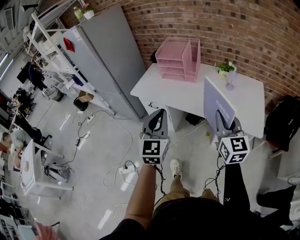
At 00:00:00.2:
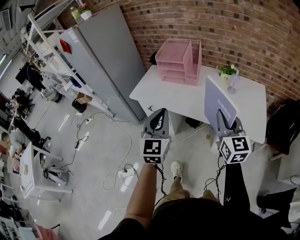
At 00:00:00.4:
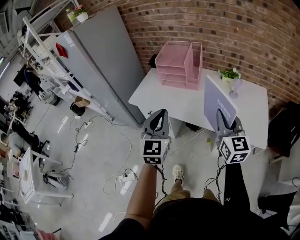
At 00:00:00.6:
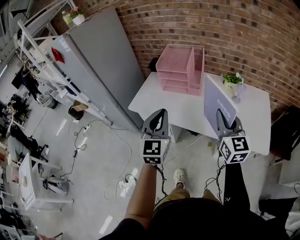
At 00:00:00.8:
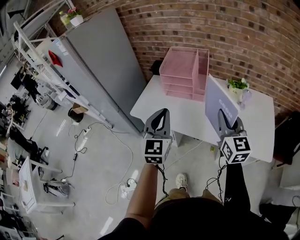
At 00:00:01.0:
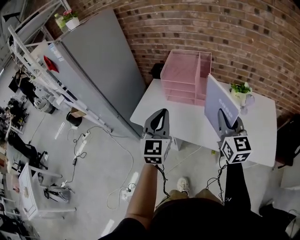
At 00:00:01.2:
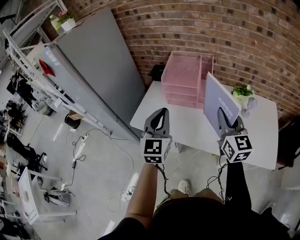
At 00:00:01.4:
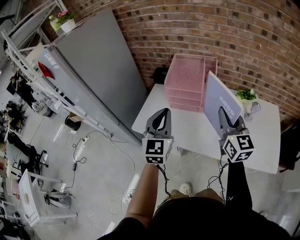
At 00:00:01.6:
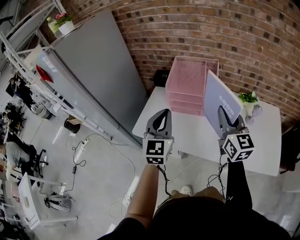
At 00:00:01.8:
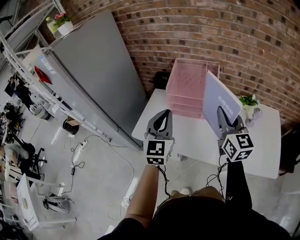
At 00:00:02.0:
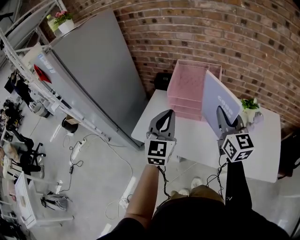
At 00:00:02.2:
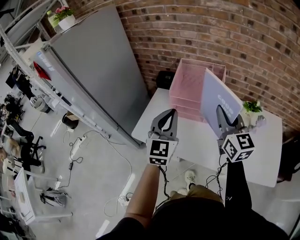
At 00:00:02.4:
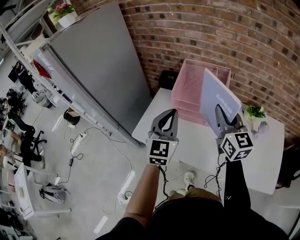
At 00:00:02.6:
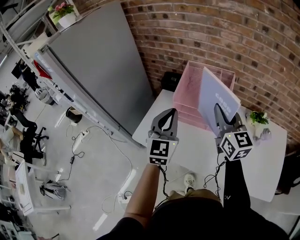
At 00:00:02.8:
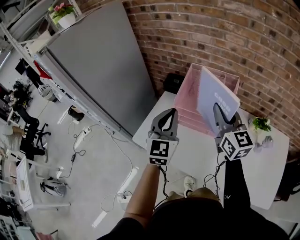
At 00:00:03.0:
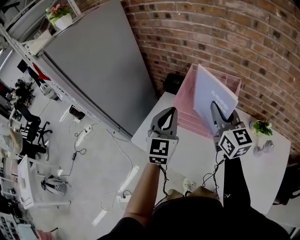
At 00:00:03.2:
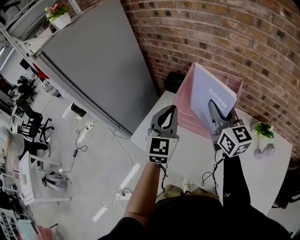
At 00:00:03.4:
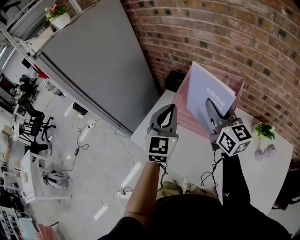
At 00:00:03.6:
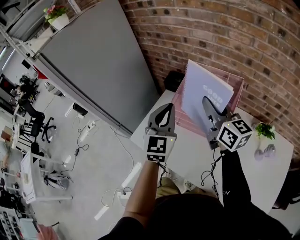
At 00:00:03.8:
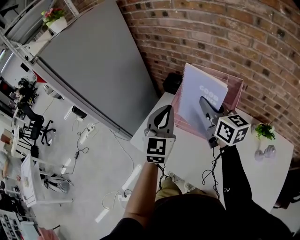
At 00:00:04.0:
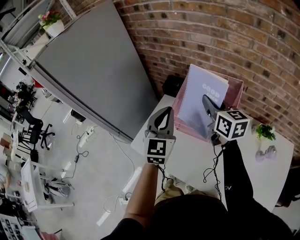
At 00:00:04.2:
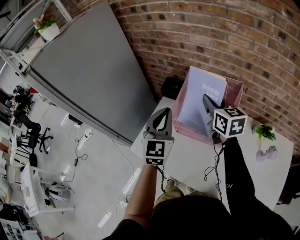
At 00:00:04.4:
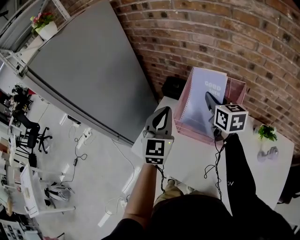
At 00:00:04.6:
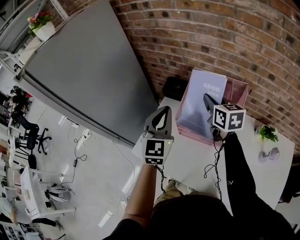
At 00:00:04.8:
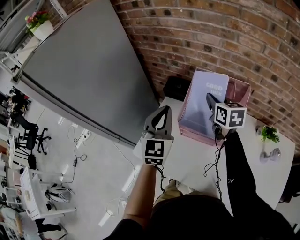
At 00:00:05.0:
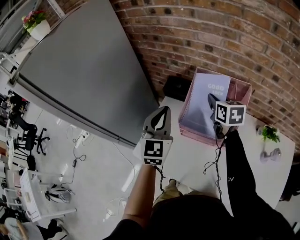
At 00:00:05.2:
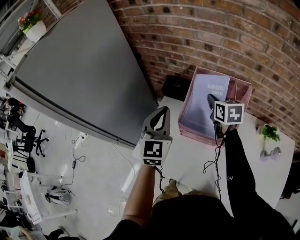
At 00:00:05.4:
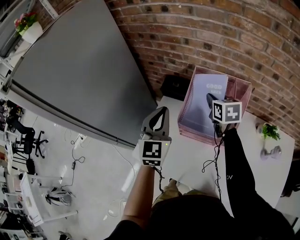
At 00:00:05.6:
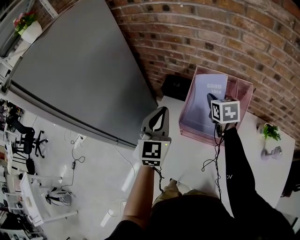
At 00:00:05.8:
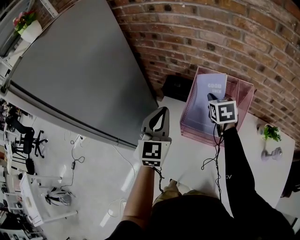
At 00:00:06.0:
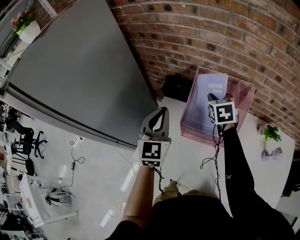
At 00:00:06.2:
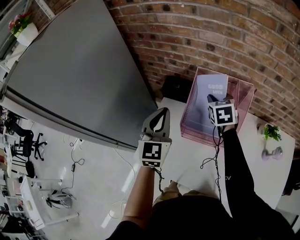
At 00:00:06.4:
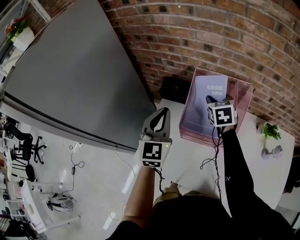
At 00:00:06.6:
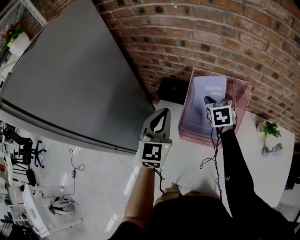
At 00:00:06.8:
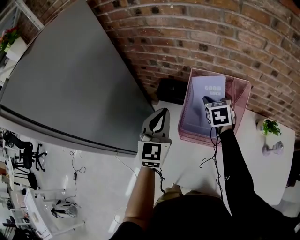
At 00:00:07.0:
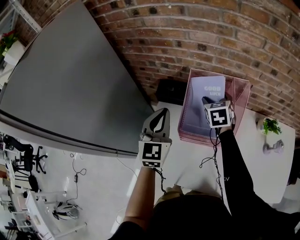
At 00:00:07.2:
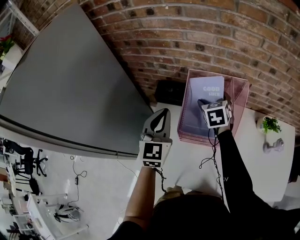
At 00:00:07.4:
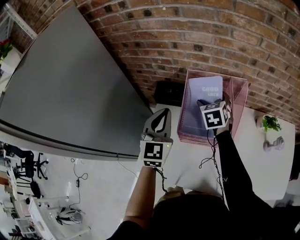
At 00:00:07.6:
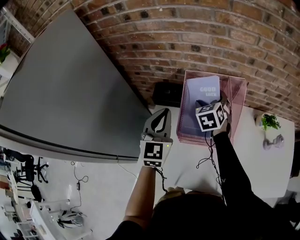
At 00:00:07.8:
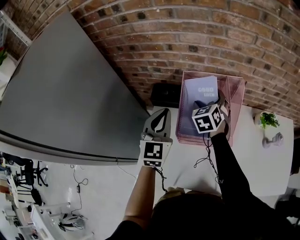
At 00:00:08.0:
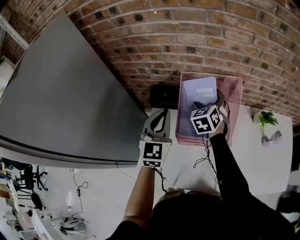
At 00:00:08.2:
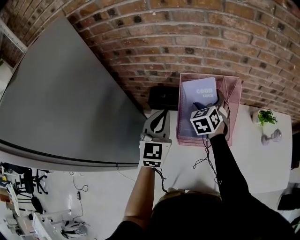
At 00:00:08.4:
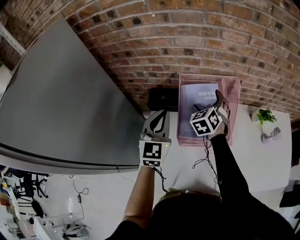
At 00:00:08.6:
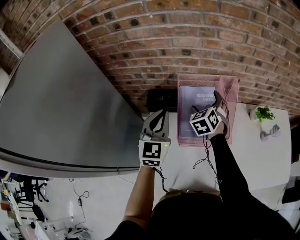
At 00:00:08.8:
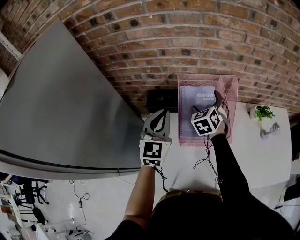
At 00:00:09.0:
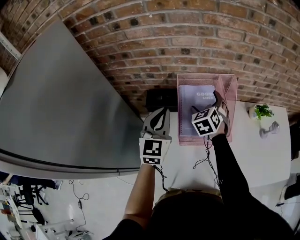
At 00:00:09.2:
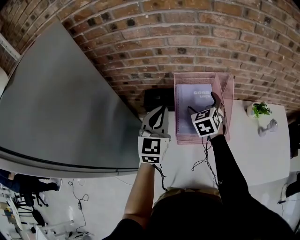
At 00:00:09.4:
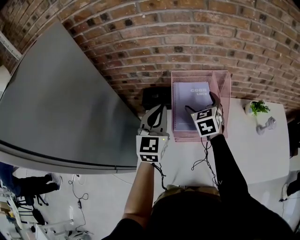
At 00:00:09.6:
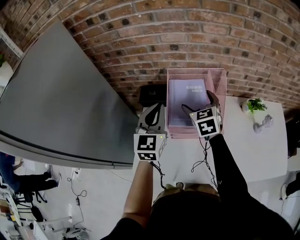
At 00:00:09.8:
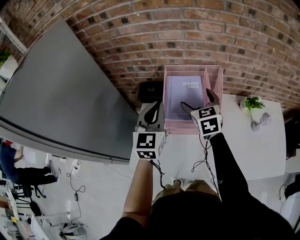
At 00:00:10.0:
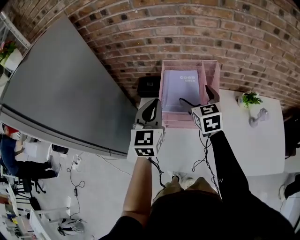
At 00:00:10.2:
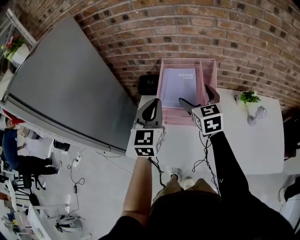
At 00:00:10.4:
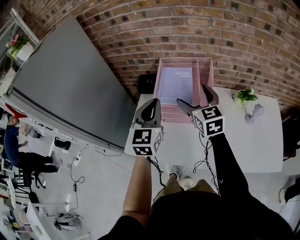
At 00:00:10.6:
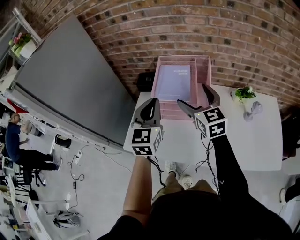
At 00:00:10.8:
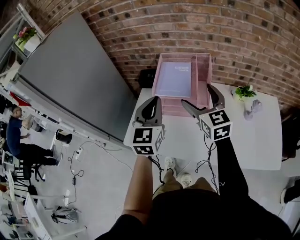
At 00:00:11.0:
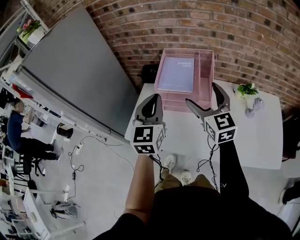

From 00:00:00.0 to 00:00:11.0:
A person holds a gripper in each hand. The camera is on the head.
From 00:00:00.0 to 00:00:01.6: The two grippers go roughly 35 cm forward.
From 00:00:01.6 to 00:00:03.2: Both grippers move forward, approximately 20 cm. The right gripper rotates roughly 20 degrees.
From 00:00:03.2 to 00:00:04.8: The left gripper shifts approximately 10 cm forward; the right gripper goes roughly 15 cm forward and downward, and changes its angle by approximately 30 degrees.
From 00:00:04.8 to 00:00:06.2: The right gripper changes place by about 5 cm, and changes its angle by approximately 30 degrees.
From 00:00:06.2 to 00:00:07.8: The right gripper opens its fingers. The left gripper ends up about 5 cm from where it was.
From 00:00:07.8 to 00:00:09.4: The grippers move only a little.
From 00:00:09.4 to 00:00:11.0: The right gripper moves backward and upward, roughly 25 cm, and turns by approximately 30 degrees. The left gripper shifts about 20 cm backward.

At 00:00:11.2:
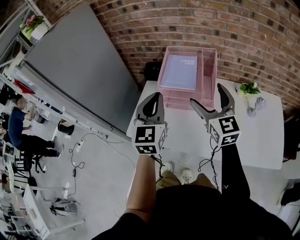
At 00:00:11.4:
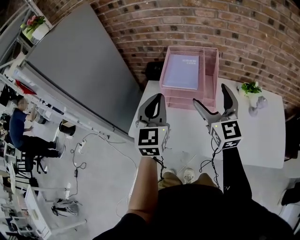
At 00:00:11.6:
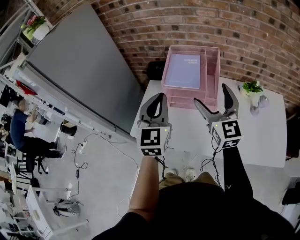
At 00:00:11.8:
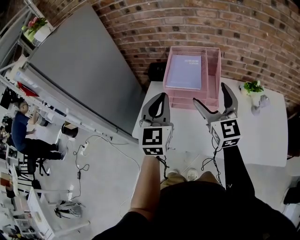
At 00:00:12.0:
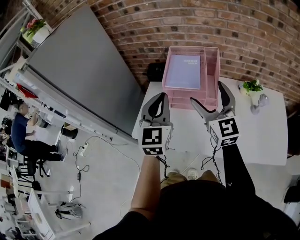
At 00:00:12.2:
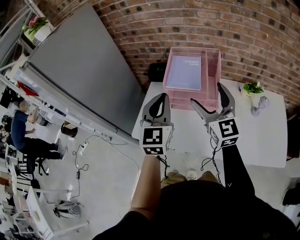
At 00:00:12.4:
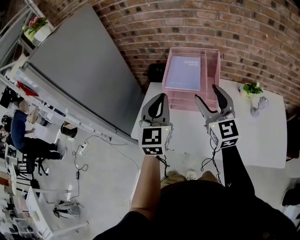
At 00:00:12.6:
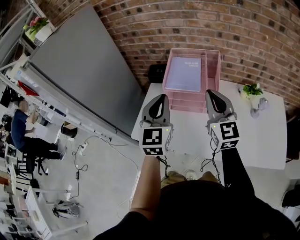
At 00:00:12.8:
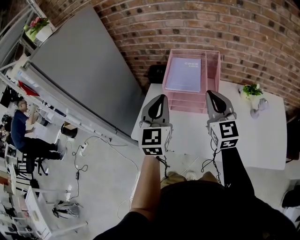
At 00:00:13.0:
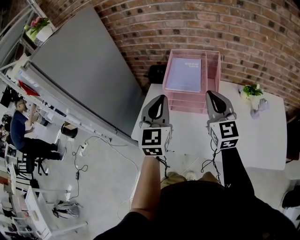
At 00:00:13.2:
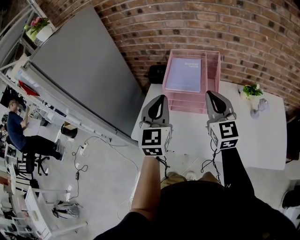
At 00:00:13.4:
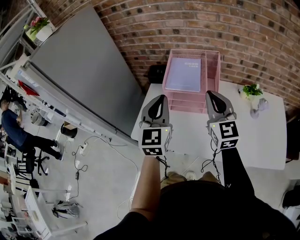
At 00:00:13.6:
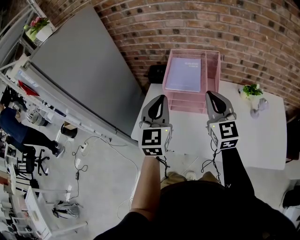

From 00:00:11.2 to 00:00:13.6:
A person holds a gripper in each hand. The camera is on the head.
From 00:00:11.2 to 00:00:12.4: The right gripper closes its fingers.
From 00:00:12.4 to 00:00:13.6: The right gripper closes.

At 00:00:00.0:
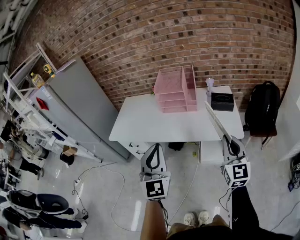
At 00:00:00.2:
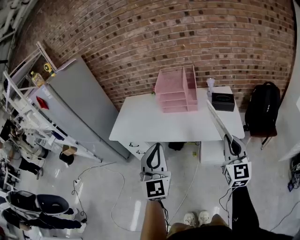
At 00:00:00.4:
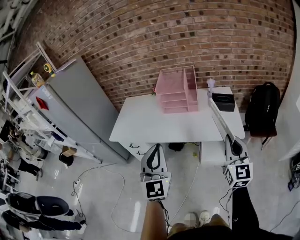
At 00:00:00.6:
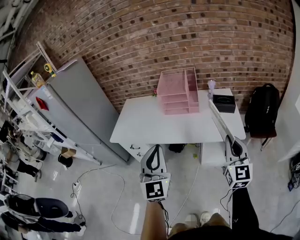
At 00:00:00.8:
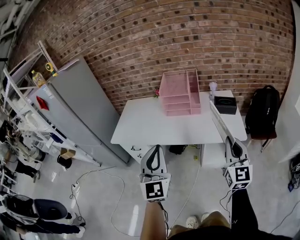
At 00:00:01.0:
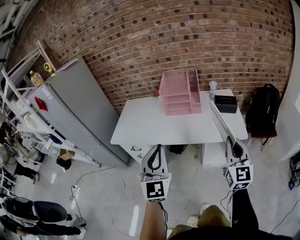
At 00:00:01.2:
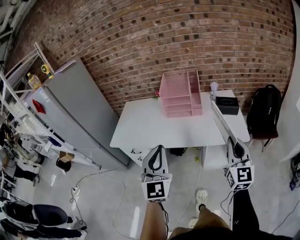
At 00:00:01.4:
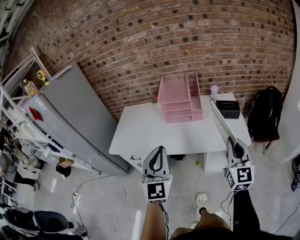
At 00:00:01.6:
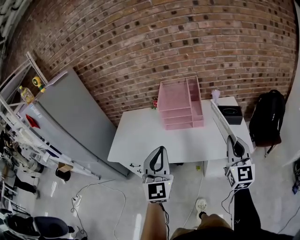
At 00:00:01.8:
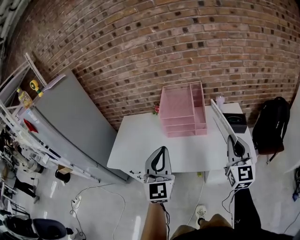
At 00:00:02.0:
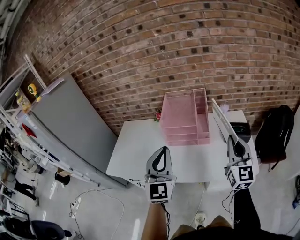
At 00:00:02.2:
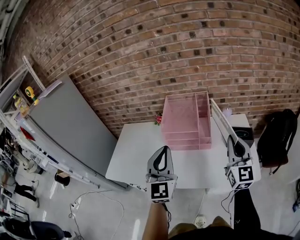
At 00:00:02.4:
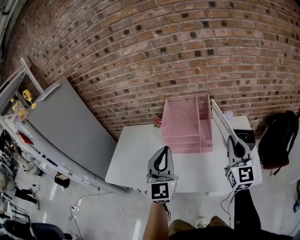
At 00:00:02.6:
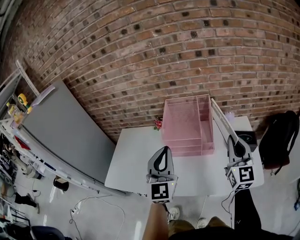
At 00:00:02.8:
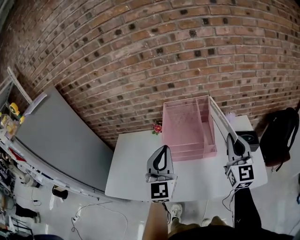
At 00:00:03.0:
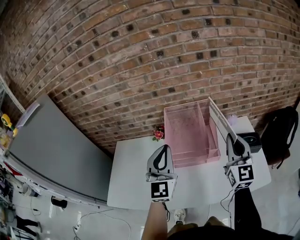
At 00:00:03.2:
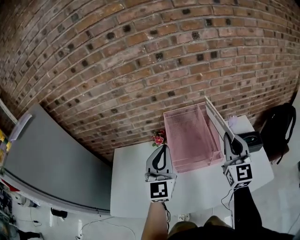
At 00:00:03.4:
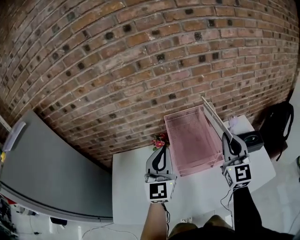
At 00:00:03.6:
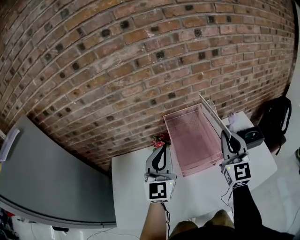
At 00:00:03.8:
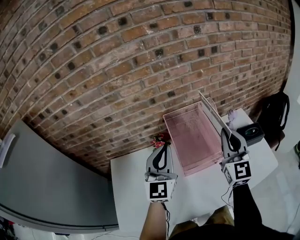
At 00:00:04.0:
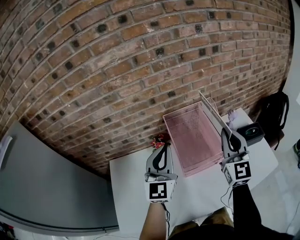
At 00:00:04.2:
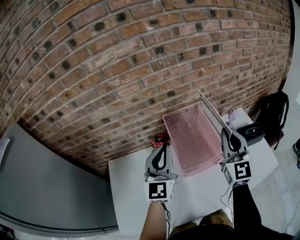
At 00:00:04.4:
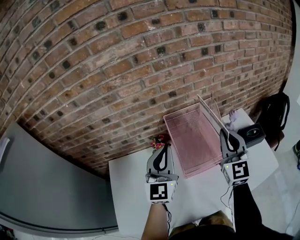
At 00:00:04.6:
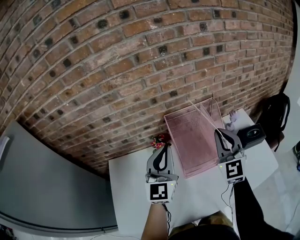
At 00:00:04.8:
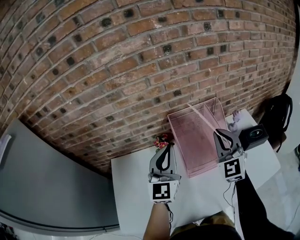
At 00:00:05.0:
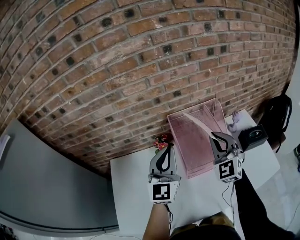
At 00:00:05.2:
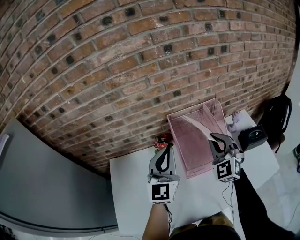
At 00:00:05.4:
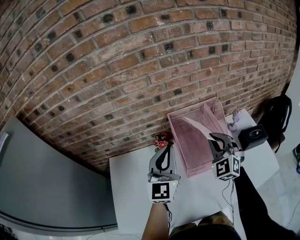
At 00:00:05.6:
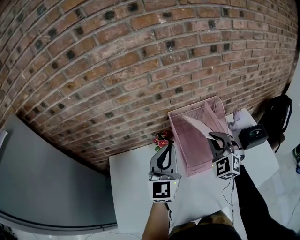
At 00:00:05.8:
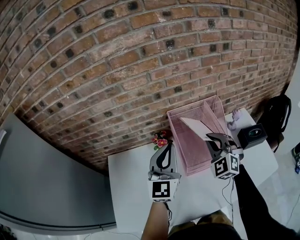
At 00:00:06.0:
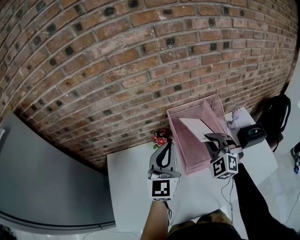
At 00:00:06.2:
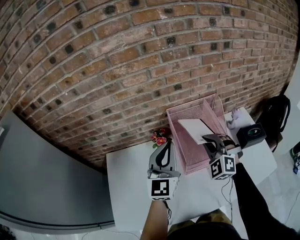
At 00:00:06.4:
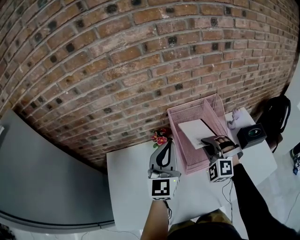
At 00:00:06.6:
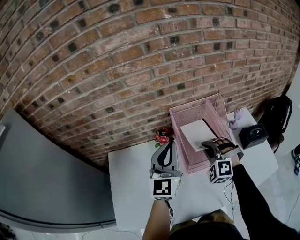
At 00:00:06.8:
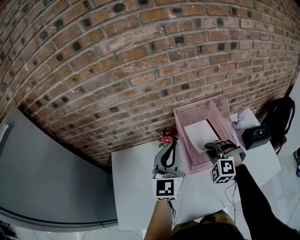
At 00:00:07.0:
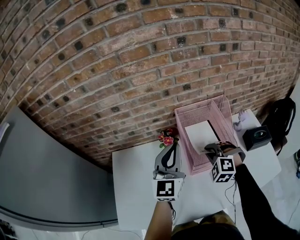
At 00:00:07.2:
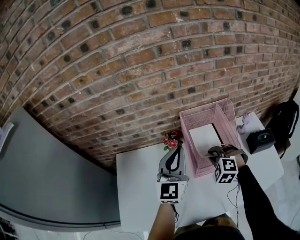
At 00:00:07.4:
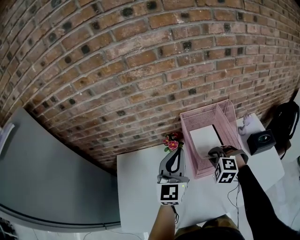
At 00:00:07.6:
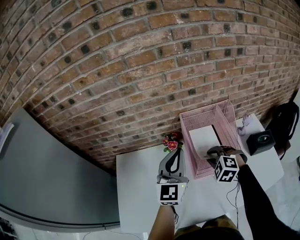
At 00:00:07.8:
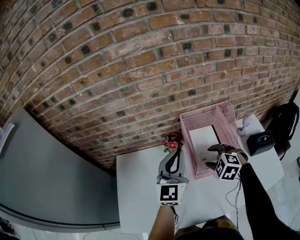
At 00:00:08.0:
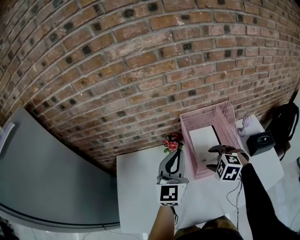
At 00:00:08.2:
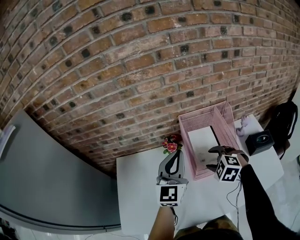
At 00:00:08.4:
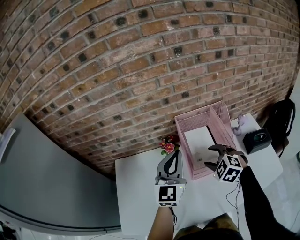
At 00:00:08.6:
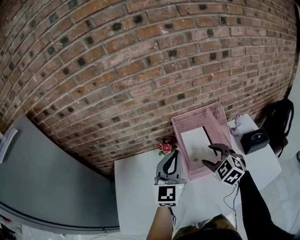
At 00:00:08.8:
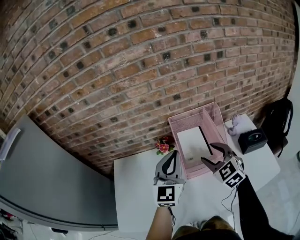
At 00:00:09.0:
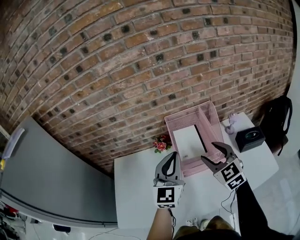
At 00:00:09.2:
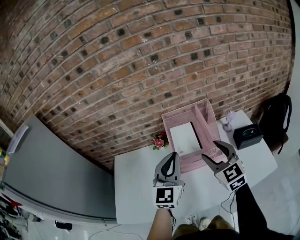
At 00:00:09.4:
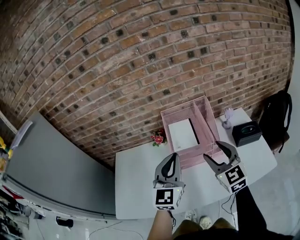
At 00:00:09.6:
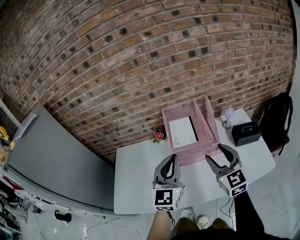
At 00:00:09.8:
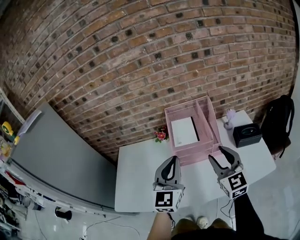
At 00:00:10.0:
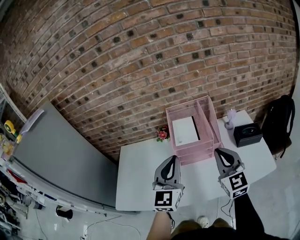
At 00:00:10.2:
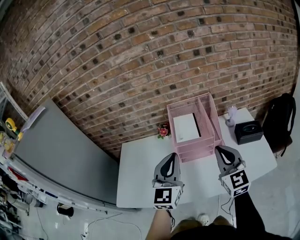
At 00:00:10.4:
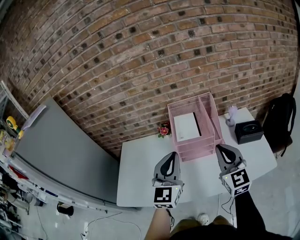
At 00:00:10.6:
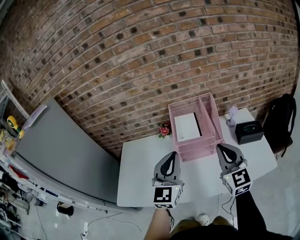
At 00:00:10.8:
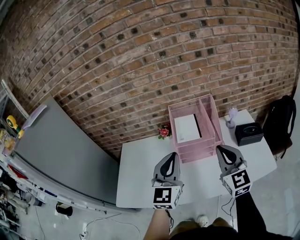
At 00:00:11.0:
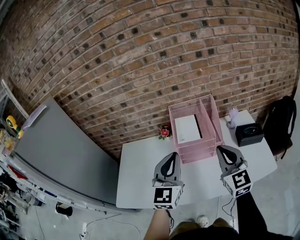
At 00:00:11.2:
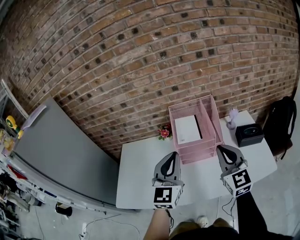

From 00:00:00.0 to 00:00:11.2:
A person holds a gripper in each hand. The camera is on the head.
From 00:00:00.0 to 00:00:01.6: Both grippers move forward, roughly 15 cm.
From 00:00:01.6 to 00:00:03.2: The grippers both shift forward by approximately 35 cm.
From 00:00:03.2 to 00:00:04.8: The left gripper shifts about 10 cm forward and to the left; the right gripper shifts approximately 15 cm to the left and forward, and swivels about 30 degrees.
From 00:00:04.8 to 00:00:06.4: The right gripper heads downward and to the left, covering about 10 cm, and turns by approximately 50 degrees.
From 00:00:06.4 to 00:00:08.0: The right gripper moves roughly 5 cm, turns by some 40 degrees, and opens.
From 00:00:08.0 to 00:00:09.6: The right gripper shifts about 25 cm backward, to the right and upward, and tilts its fingers roughly 50 degrees upward. The left gripper is displaced backward and to the right by roughly 20 cm.
From 00:00:09.6 to 00:00:11.2: The right gripper closes.
